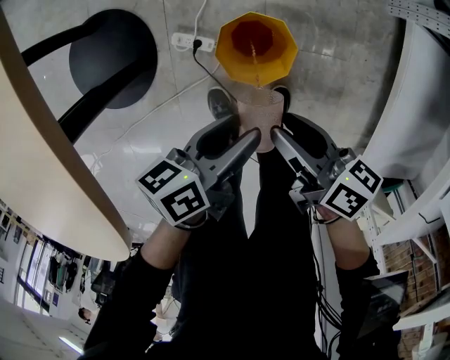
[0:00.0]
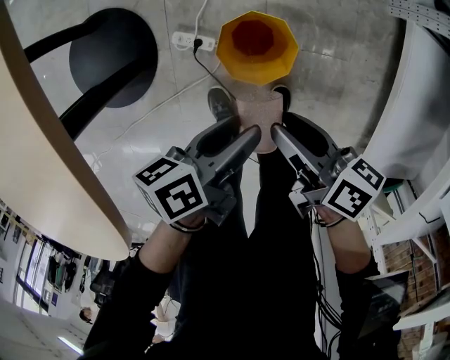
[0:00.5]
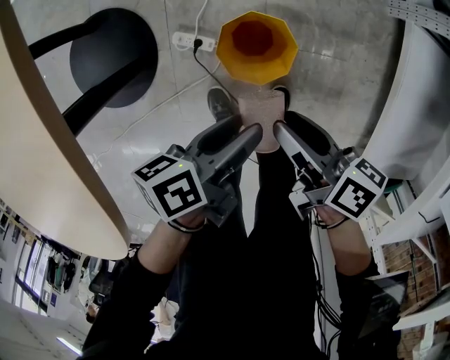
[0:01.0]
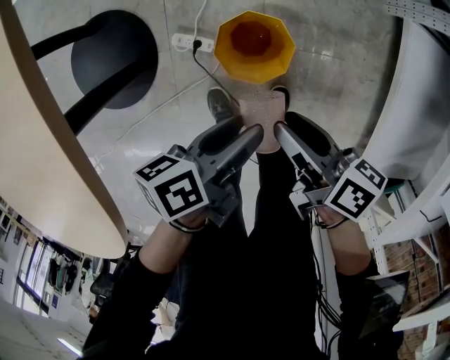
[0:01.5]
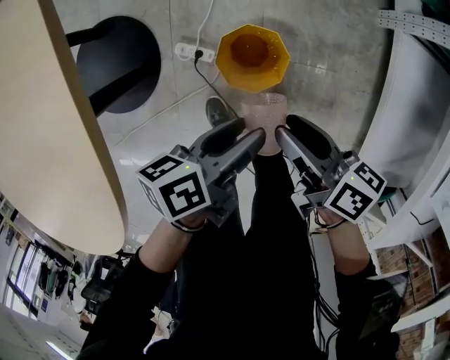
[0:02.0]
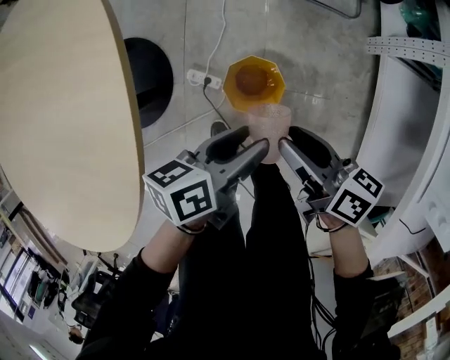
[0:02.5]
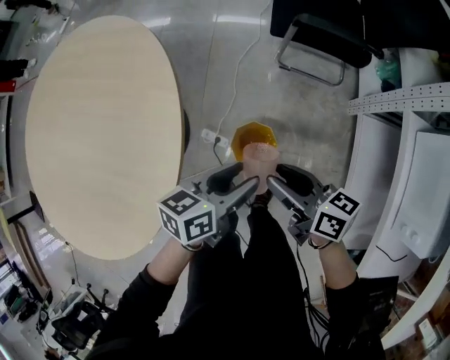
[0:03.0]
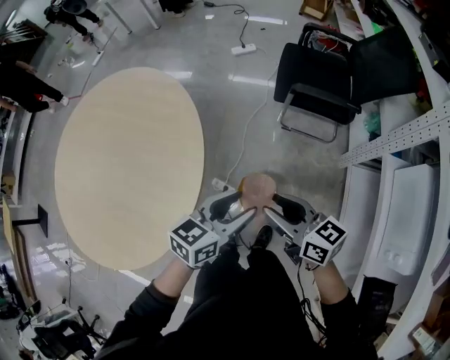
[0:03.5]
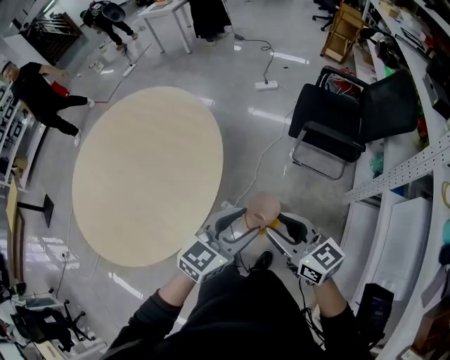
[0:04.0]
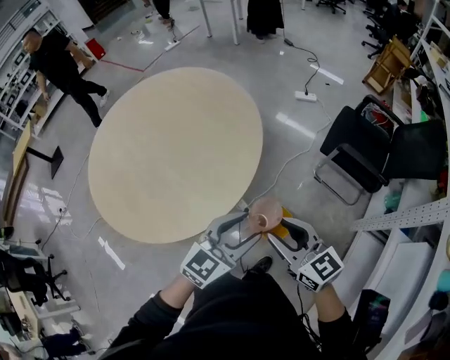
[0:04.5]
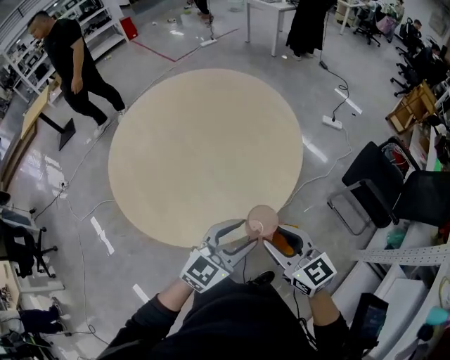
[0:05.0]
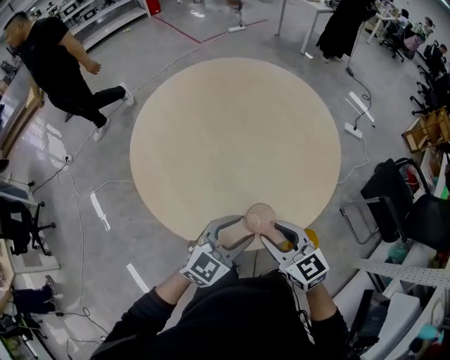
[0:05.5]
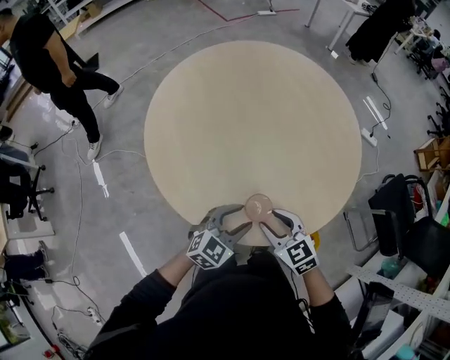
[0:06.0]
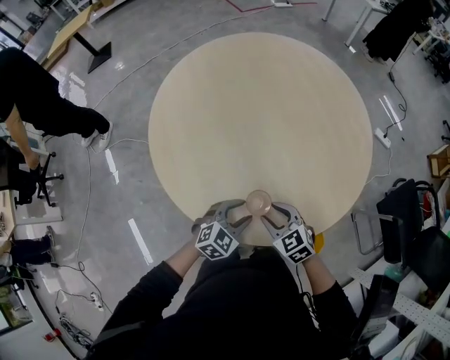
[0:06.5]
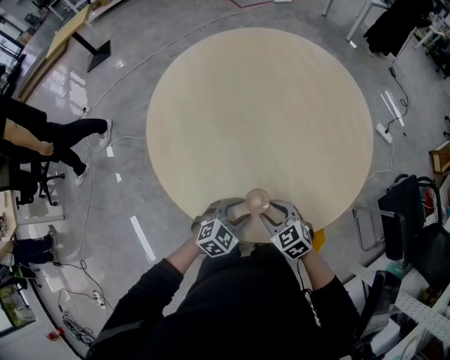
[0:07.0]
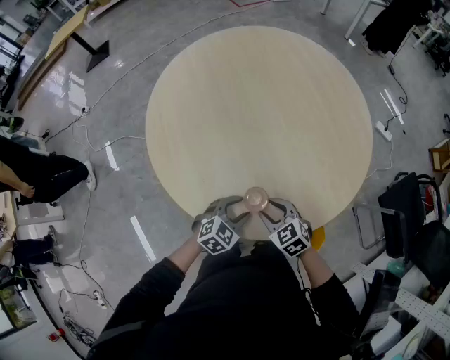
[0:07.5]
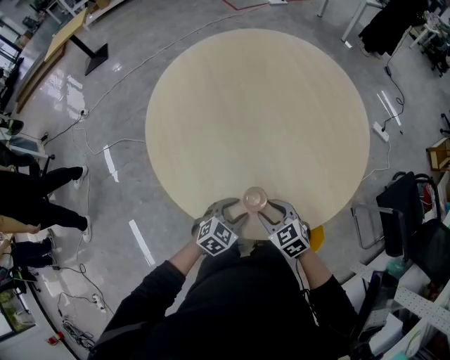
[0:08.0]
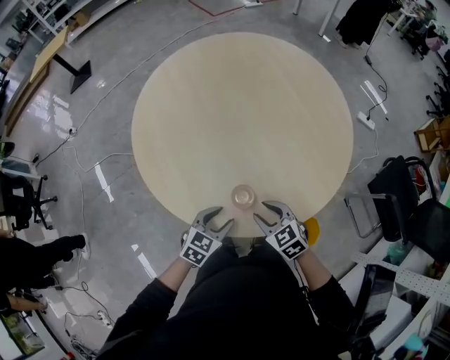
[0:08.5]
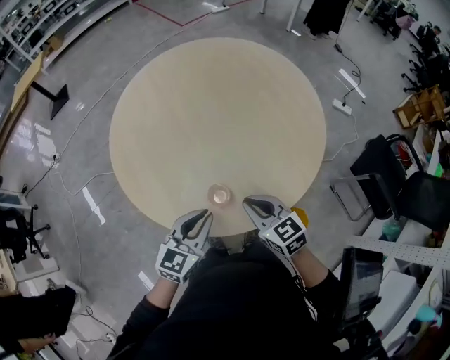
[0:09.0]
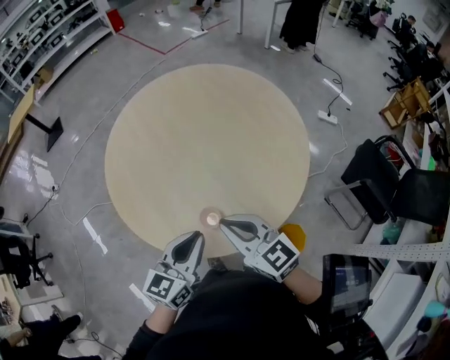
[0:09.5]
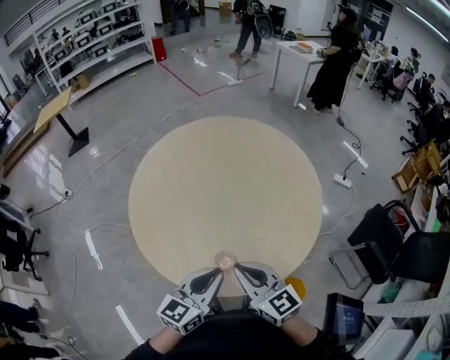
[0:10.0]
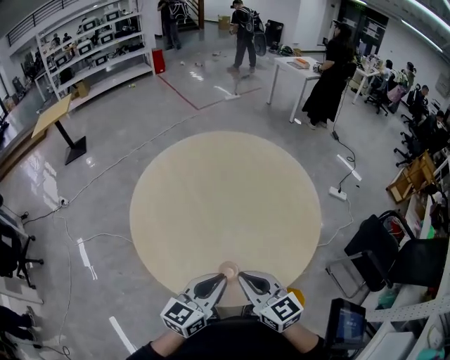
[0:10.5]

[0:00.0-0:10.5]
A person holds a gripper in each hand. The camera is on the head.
0:00.0 to 0:02.0: There are only small adjustments of the grippers.
0:02.0 to 0:04.0: Both grippers move upward, about 40 cm. The right gripper twists roughly 50 degrees counterclockwise, seen from behind, while the left gripper twists approximately 60 degrees clockwise, seen from behind.
0:04.0 to 0:06.5: Both grippers are carried about 50 cm. The left gripper rotates some 40 degrees. The right gripper tilts its fingers about 30 degrees downward.
0:06.5 to 0:08.5: The grippers stay close to where they were, moving slightly.
0:08.5 to 0:10.5: Both grippers travel together upward, some 20 cm. The right gripper rotates approximately 30 degrees, and closes its fingers, while the left gripper tilts its fingers approximately 30 degrees upward, and closes its fingers.

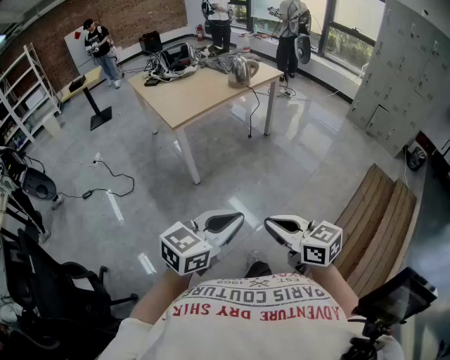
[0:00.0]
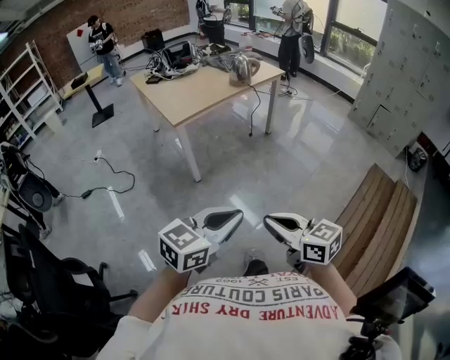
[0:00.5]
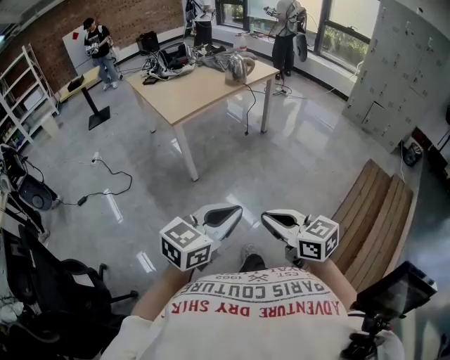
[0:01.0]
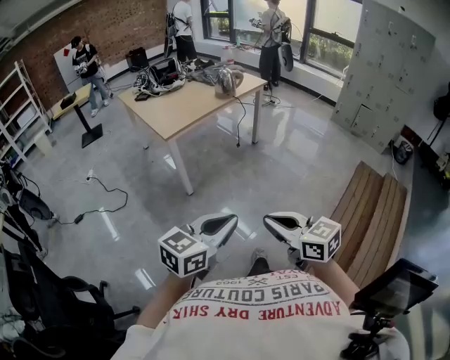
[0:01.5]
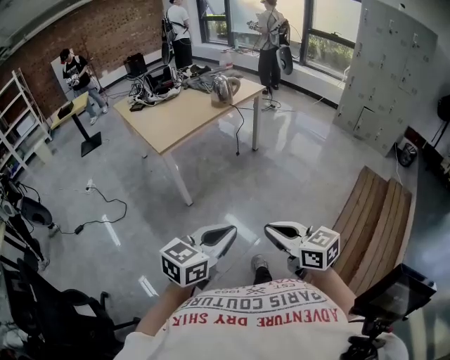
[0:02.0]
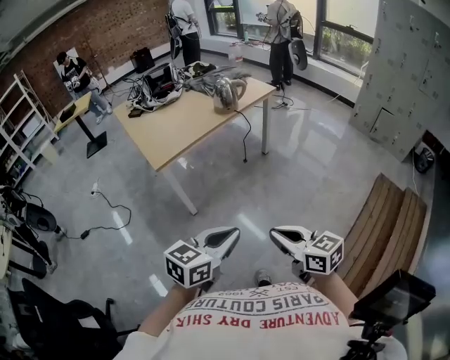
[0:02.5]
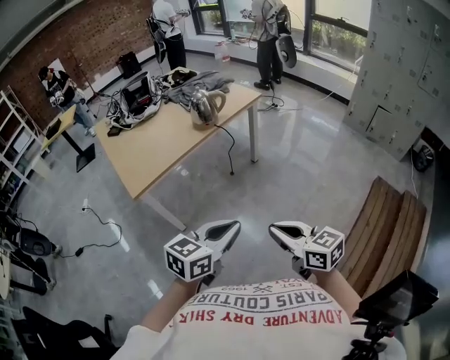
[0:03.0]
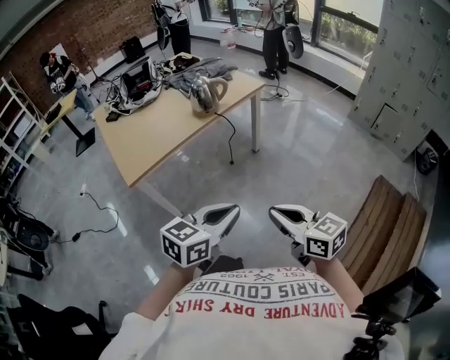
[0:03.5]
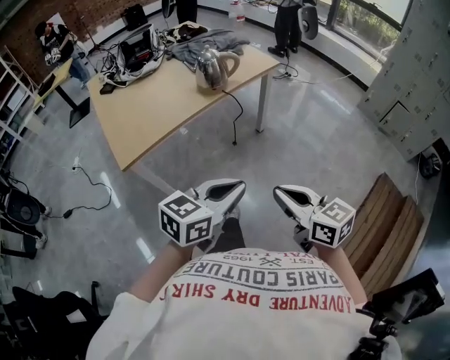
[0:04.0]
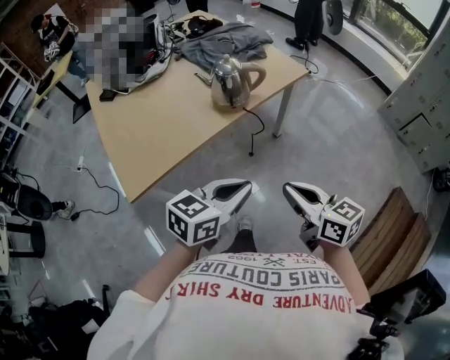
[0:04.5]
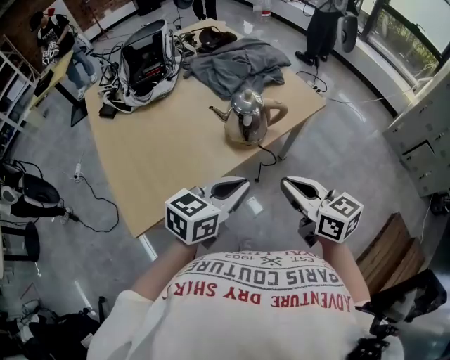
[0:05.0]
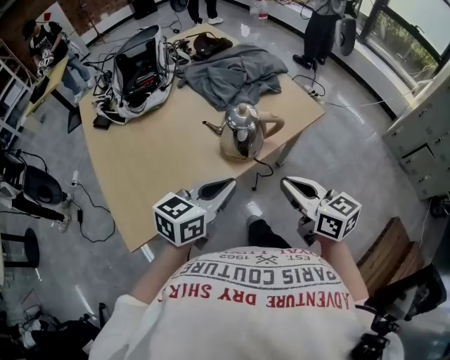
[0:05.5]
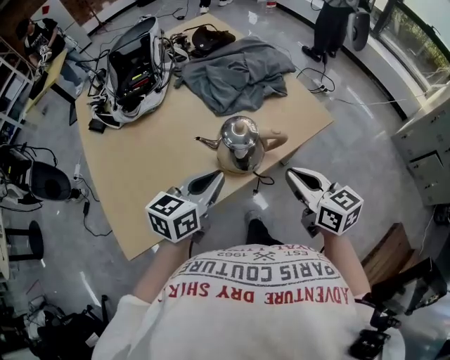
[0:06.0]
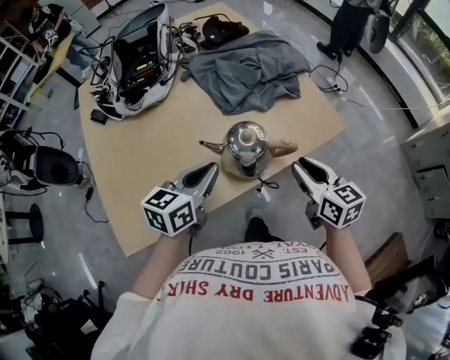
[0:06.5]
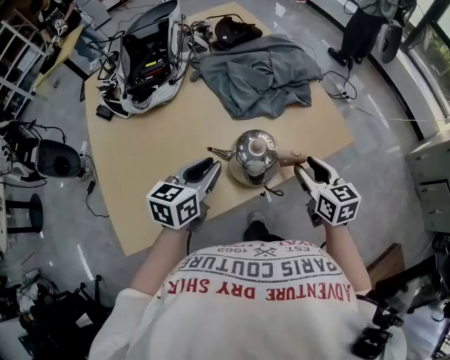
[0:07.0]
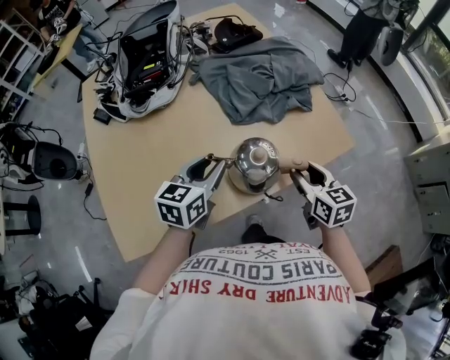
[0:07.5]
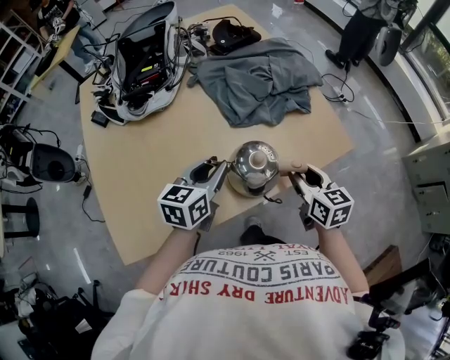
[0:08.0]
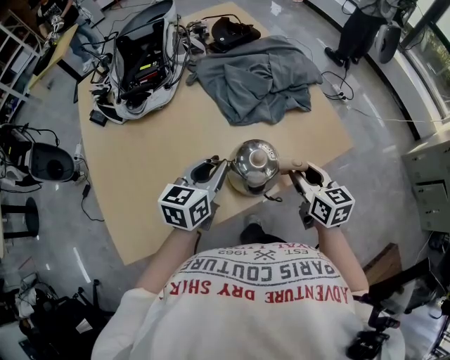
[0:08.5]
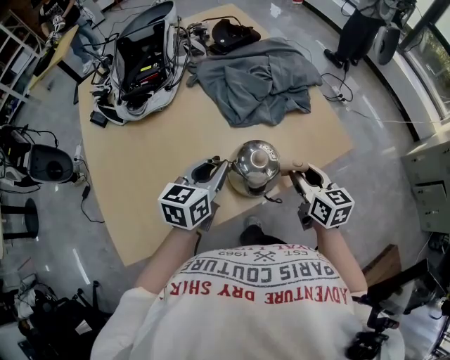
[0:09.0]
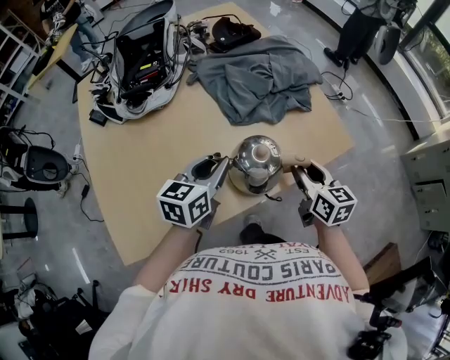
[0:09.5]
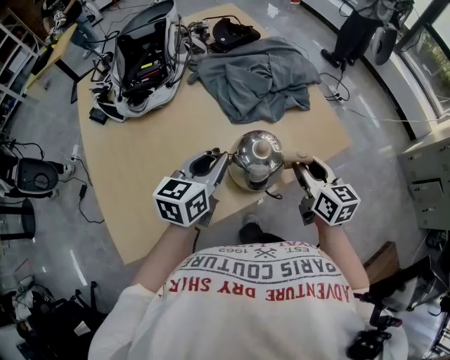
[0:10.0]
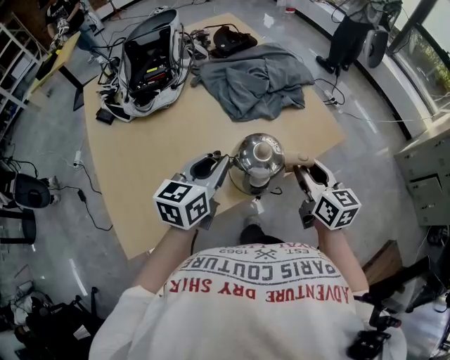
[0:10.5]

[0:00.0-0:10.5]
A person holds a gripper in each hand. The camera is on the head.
0:00.0 to 0:02.0: The grippers make only small movements.
0:02.0 to 0:04.0: Both grippers are carried forward, roughly 40 cm.
0:04.0 to 0:06.5: The pair of grippers is taken forward, roughly 50 cm. The left gripper turns by roughly 30 degrees, while the right gripper opens its fingers.
0:06.5 to 0:08.5: The left gripper heads forward, covering some 5 cm, and opens. Meanwhile the right gripper shifts some 10 cm forward and downward.
0:08.5 to 0:10.5: Both grippers travel together upward, approximately 5 cm.

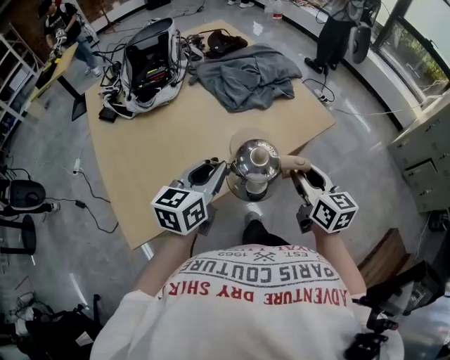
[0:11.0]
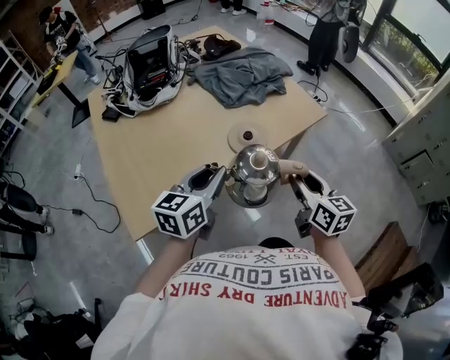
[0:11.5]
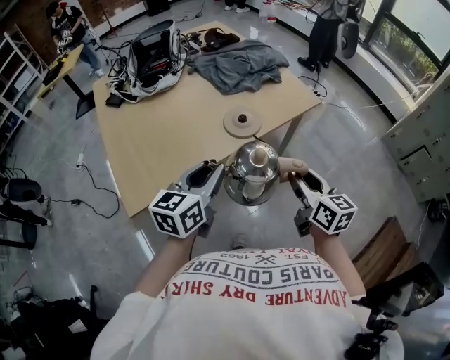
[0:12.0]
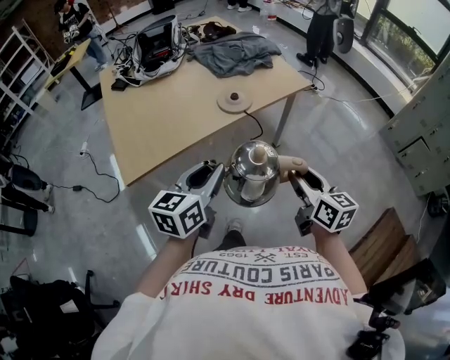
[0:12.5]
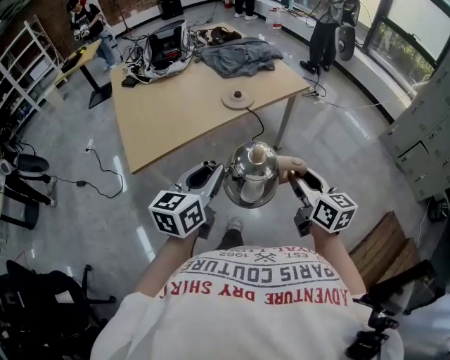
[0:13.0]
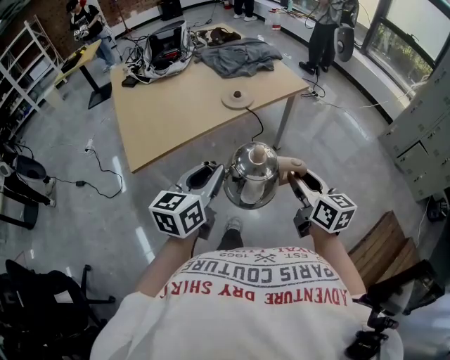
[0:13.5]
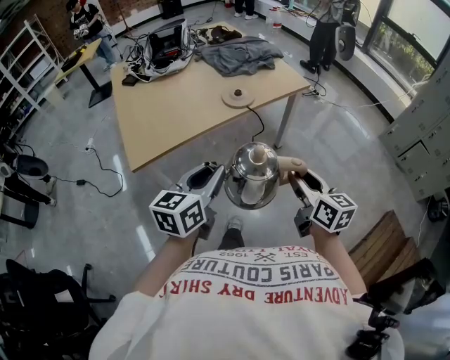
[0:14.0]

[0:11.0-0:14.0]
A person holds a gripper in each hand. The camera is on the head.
0:11.0 to 0:12.5: The grippers both shift backward by approximately 25 cm.
0:12.5 to 0:14.0: Both grippers travel together backward, approximately 5 cm.

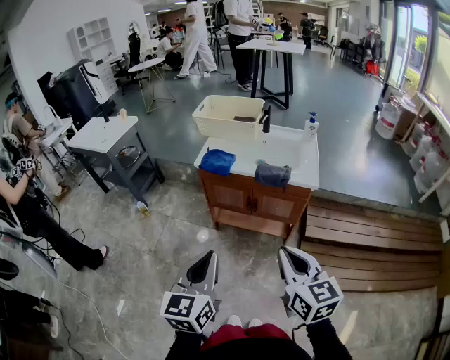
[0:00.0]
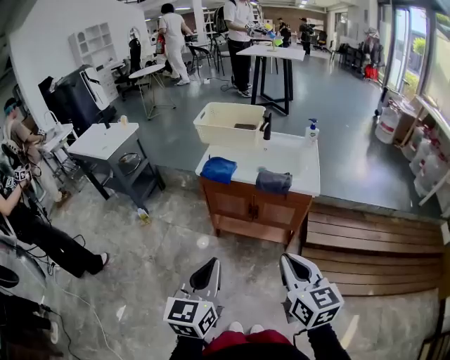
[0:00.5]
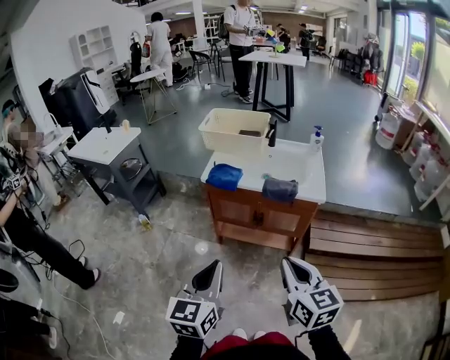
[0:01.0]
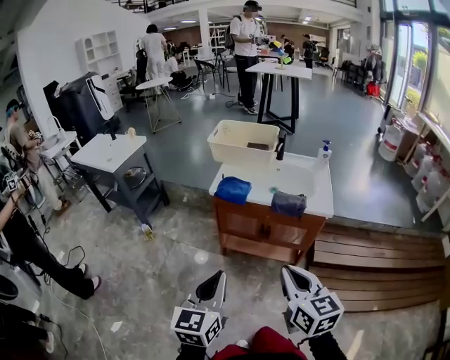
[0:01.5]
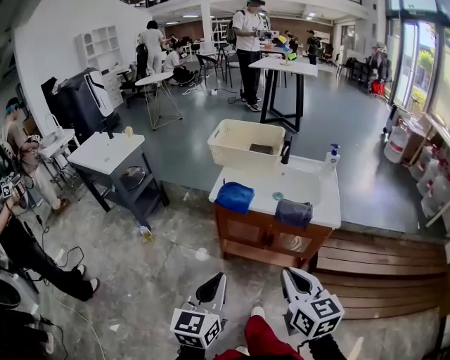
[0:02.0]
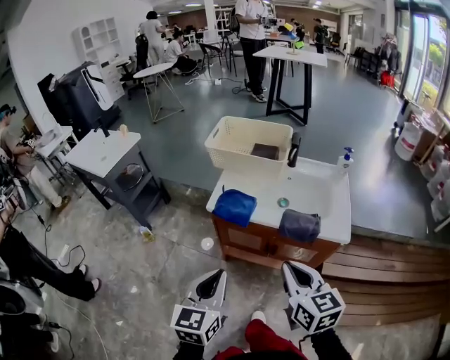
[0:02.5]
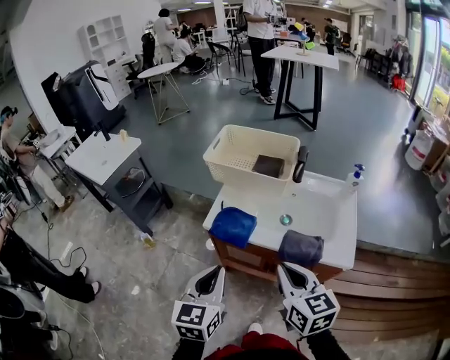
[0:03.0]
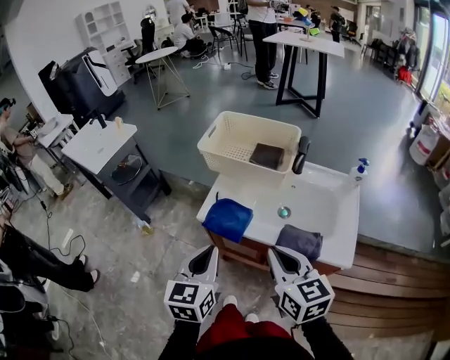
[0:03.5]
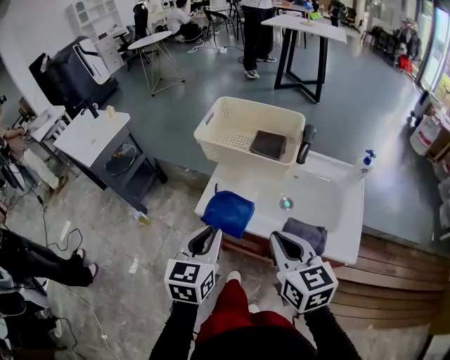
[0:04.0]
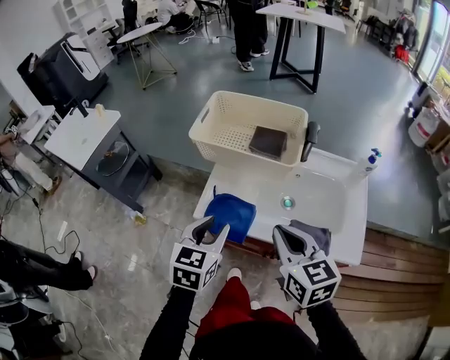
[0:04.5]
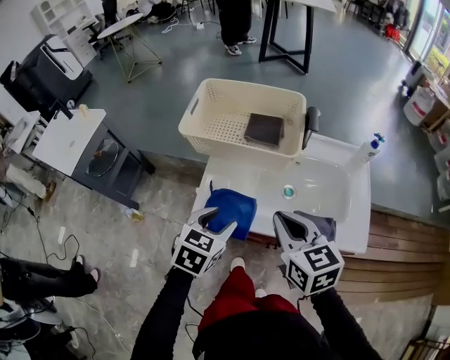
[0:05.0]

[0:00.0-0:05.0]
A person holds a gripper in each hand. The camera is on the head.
0:00.0 to 0:02.5: The two grippers go about 20 cm forward.
0:02.5 to 0:05.0: Both grippers move forward, about 25 cm. The left gripper turns by approximately 30 degrees, and opens.
